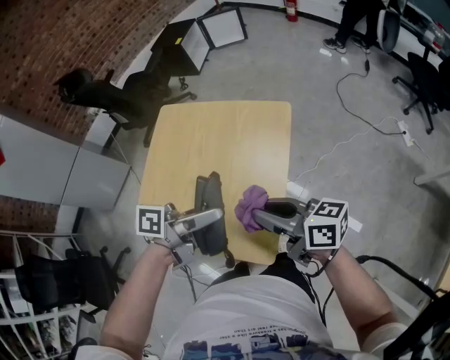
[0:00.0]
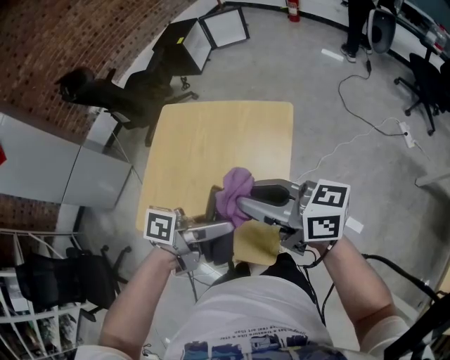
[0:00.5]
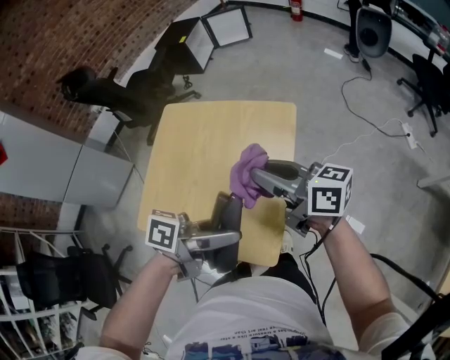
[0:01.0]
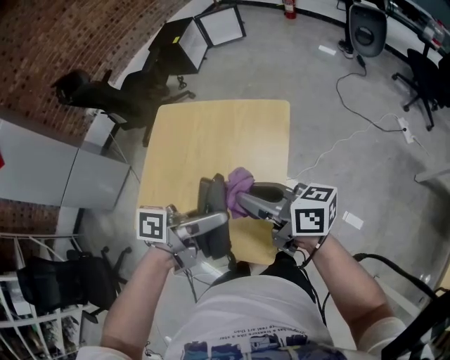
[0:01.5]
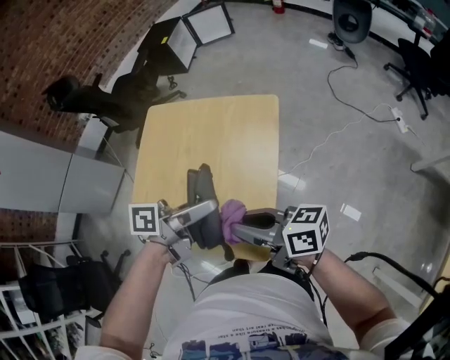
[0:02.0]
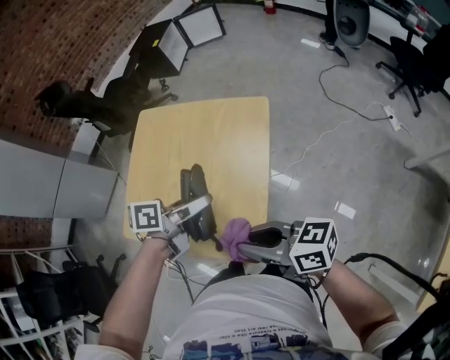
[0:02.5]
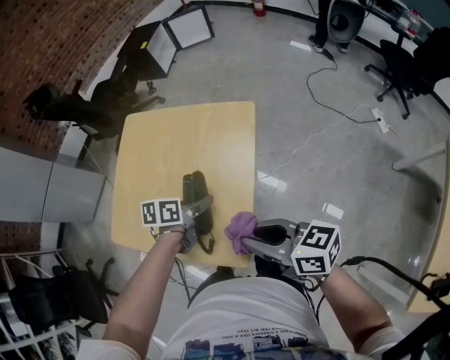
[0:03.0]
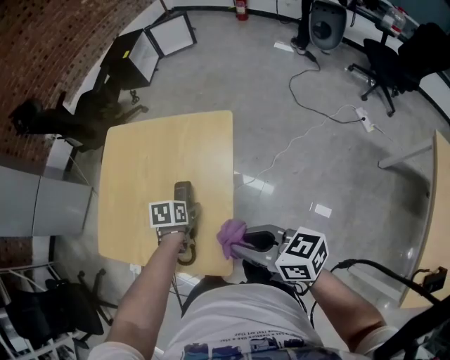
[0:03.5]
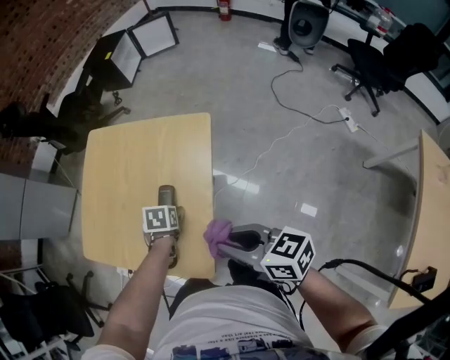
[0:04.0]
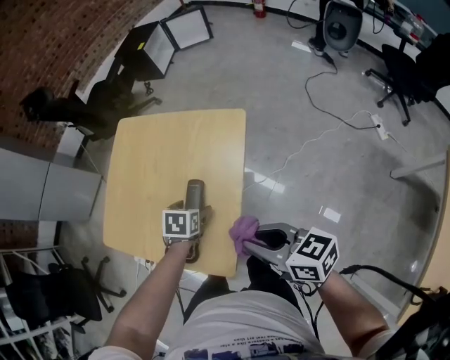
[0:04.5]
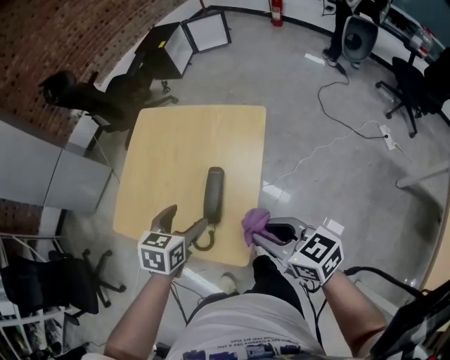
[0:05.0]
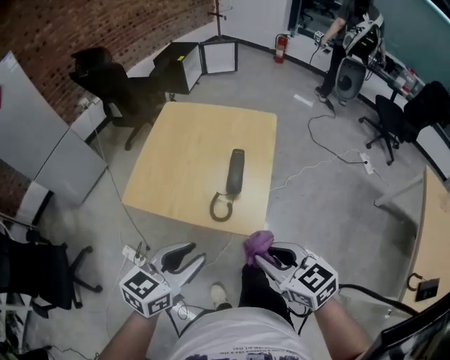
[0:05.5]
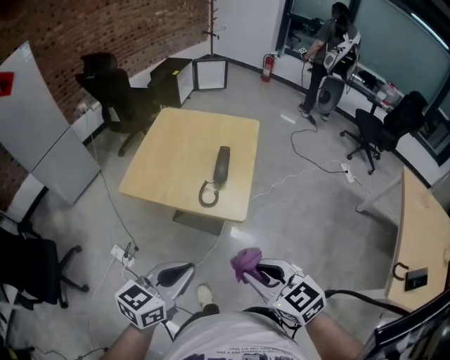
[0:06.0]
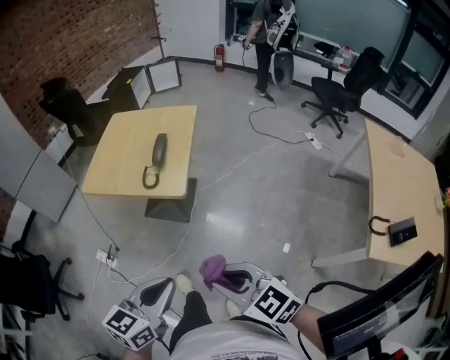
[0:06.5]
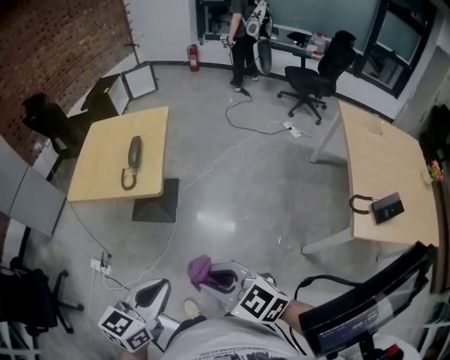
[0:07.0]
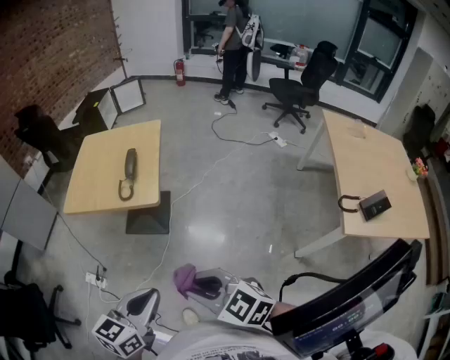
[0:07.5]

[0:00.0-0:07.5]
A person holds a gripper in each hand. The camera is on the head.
0:00.0 to 0:02.0: The right gripper travels upward and back again, about 10 cm each way.
0:02.0 to 0:04.0: The right gripper changes place by about 10 cm, and changes its angle by about 20 degrees. Meanwhile the left gripper heads downward, covering roughly 25 cm, and tips its fingers downward by approximately 60 degrees.
0:04.0 to 0:05.5: The left gripper is displaced backward, upward and to the left by some 35 cm, and points its fingers roughly 50 degrees further upward; the right gripper shifts approximately 20 cm backward and to the left, and swivels about 30 degrees.
0:05.5 to 0:07.5: Both grippers travel together backward, some 30 cm. The left gripper closes up.

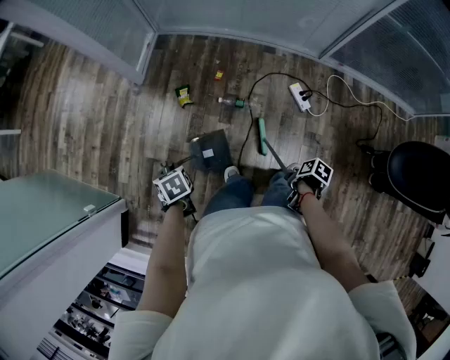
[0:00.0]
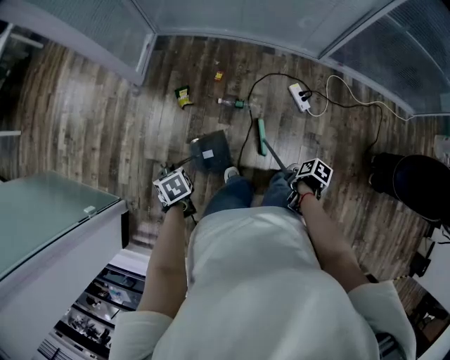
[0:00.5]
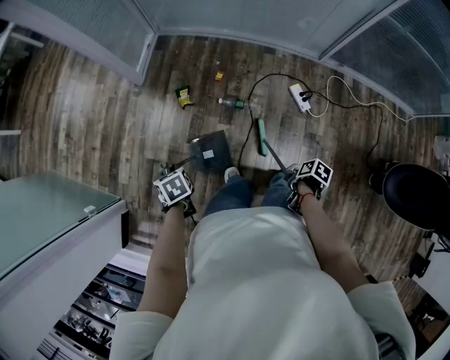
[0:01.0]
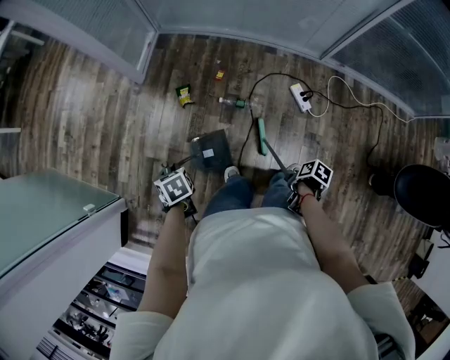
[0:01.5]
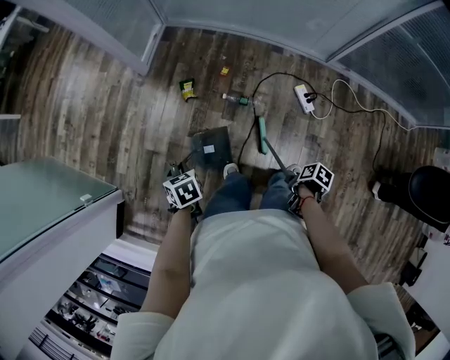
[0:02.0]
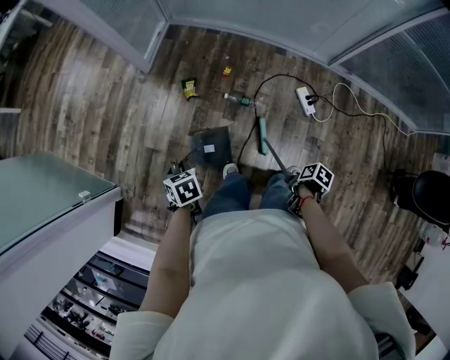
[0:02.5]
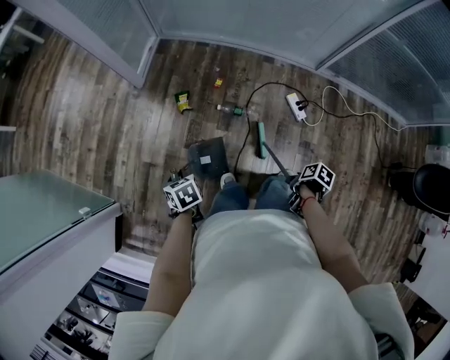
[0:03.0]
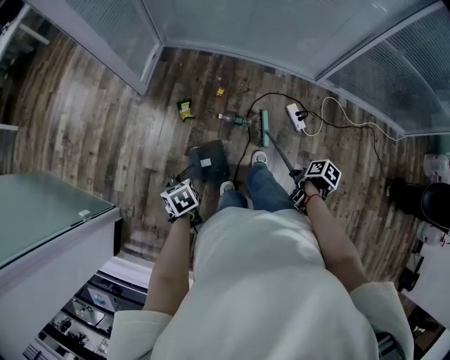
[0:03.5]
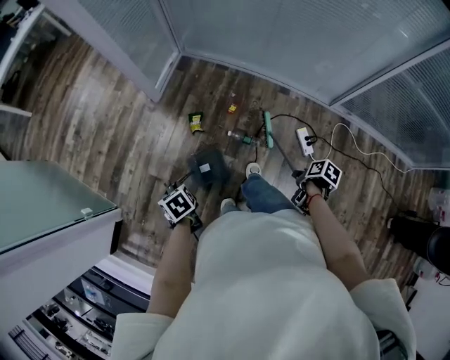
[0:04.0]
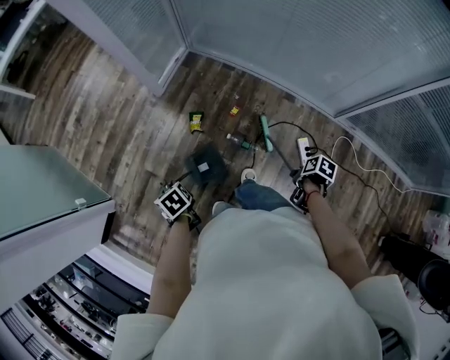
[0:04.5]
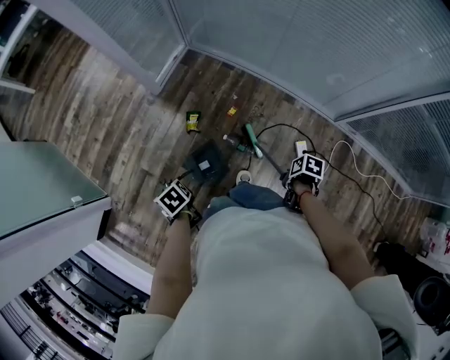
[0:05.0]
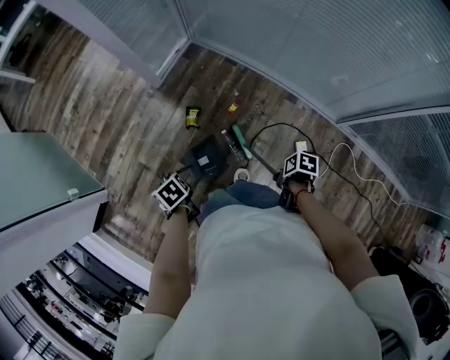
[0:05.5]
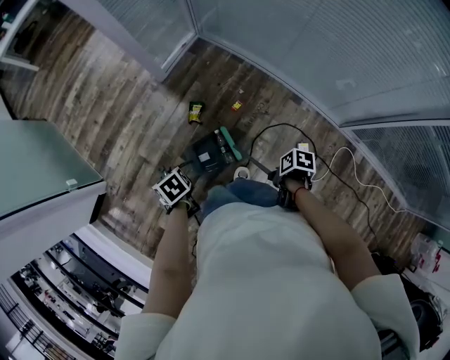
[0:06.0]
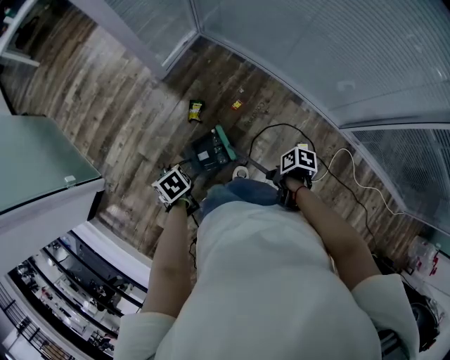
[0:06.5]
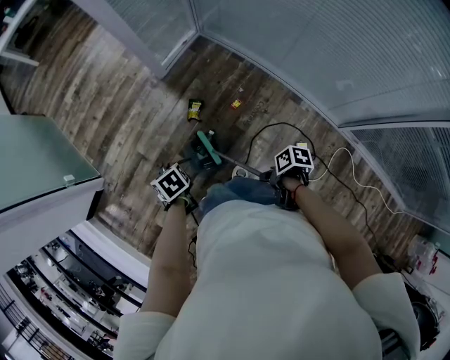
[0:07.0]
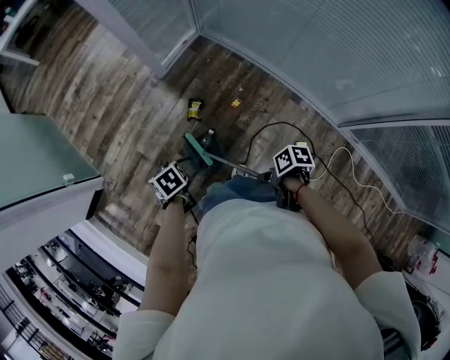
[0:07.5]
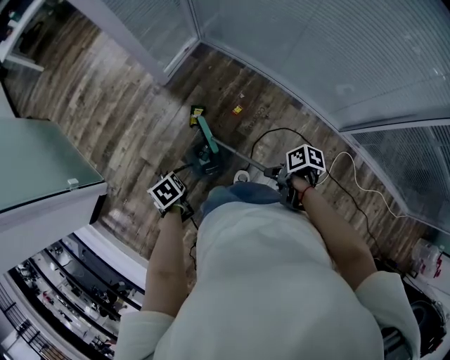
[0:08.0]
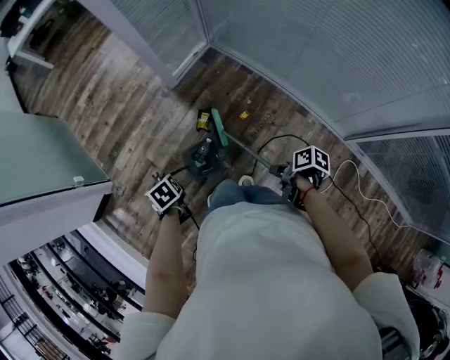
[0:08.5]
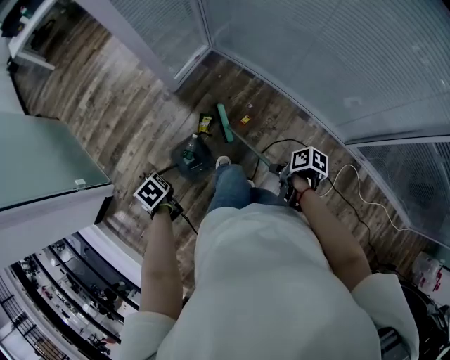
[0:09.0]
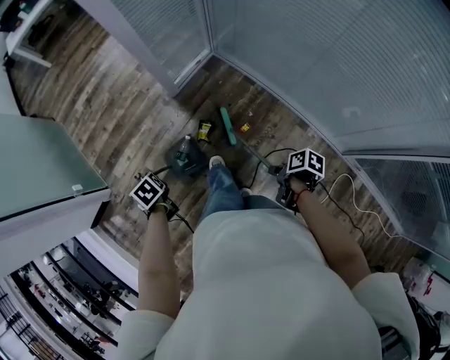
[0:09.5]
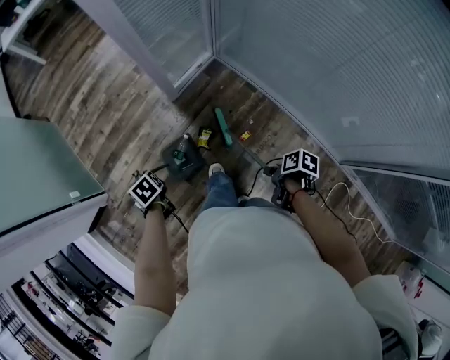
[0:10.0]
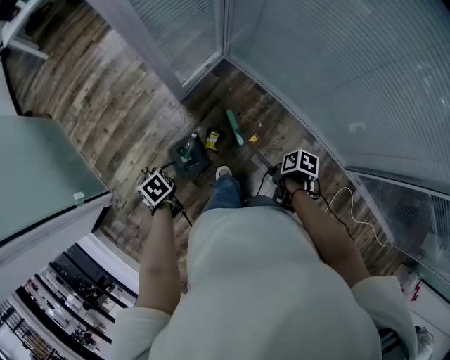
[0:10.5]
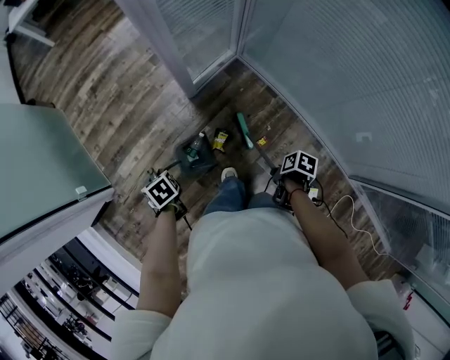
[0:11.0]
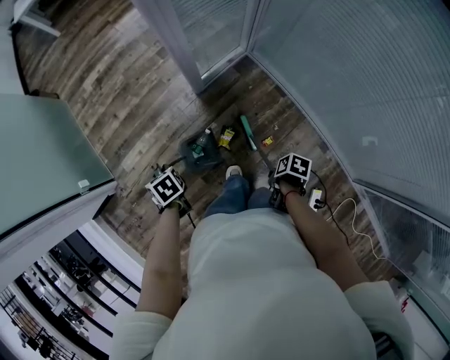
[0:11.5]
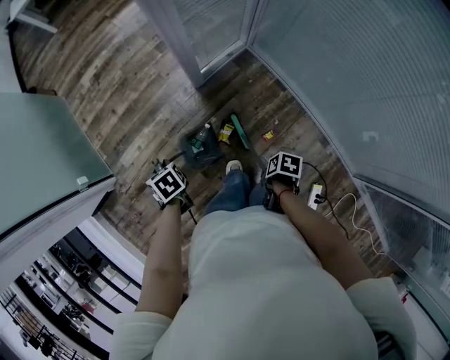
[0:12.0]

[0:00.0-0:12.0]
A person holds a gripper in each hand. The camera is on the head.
0:02.0 to 0:04.0: The left gripper ends up roughly 5 cm from where it was, and changes its angle by roughly 20 degrees.
0:04.0 to 0:06.0: The left gripper ends up about 10 cm from where it was.
0:08.0 to 0:10.0: The left gripper shifts by about 20 cm.
0:10.0 to 0:12.0: The left gripper ends up about 10 cm from where it was.

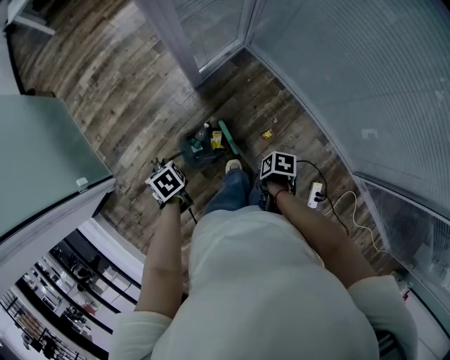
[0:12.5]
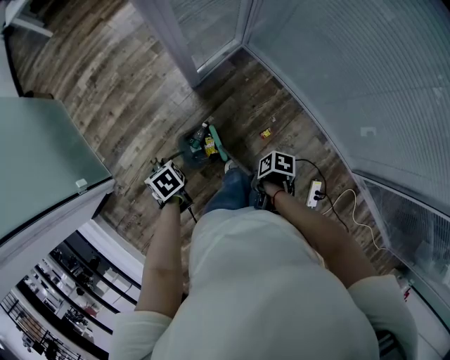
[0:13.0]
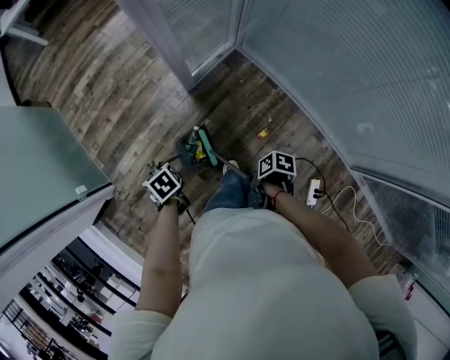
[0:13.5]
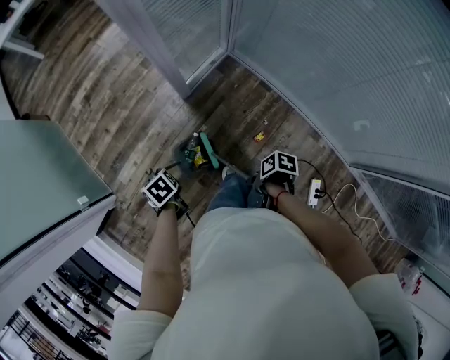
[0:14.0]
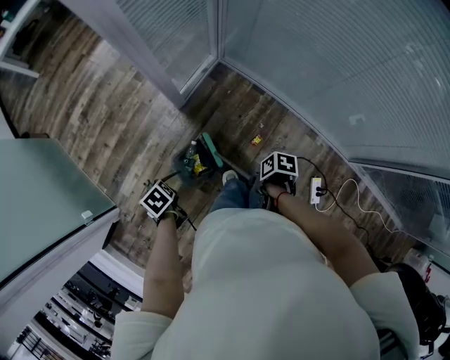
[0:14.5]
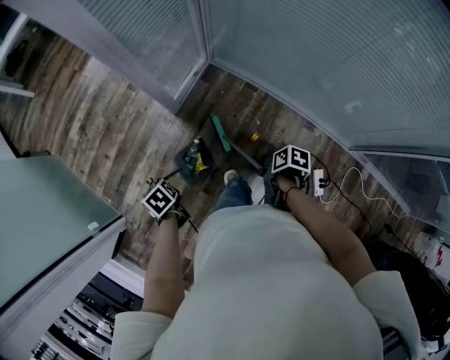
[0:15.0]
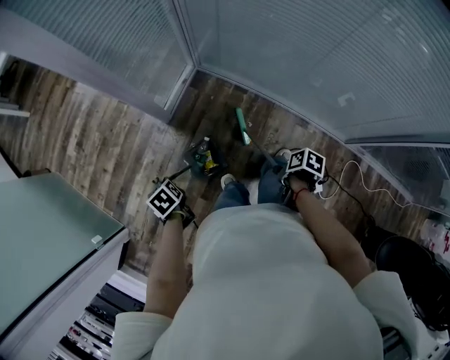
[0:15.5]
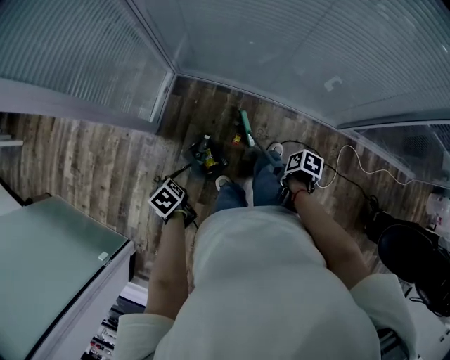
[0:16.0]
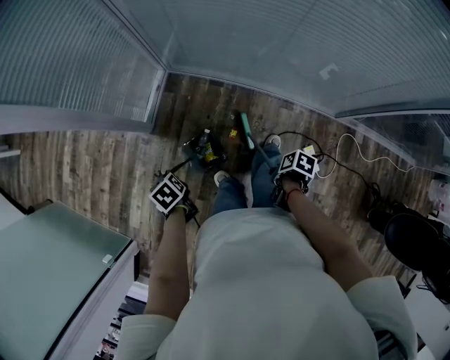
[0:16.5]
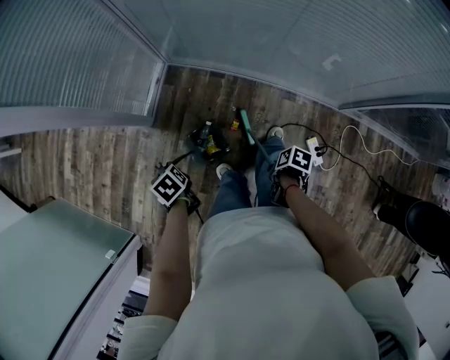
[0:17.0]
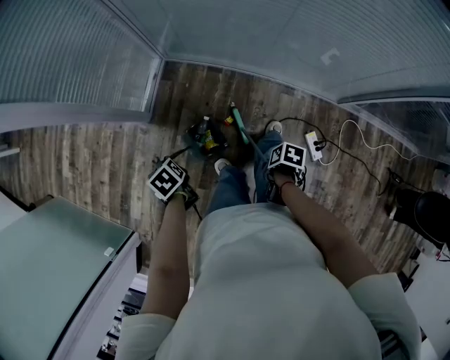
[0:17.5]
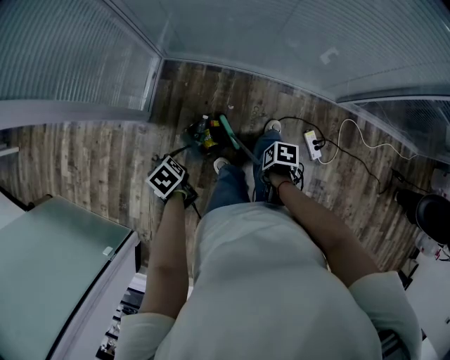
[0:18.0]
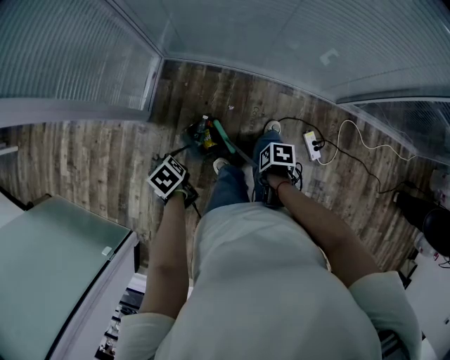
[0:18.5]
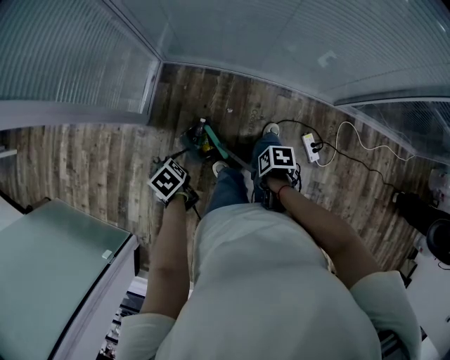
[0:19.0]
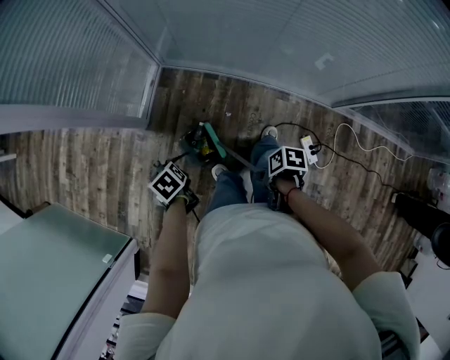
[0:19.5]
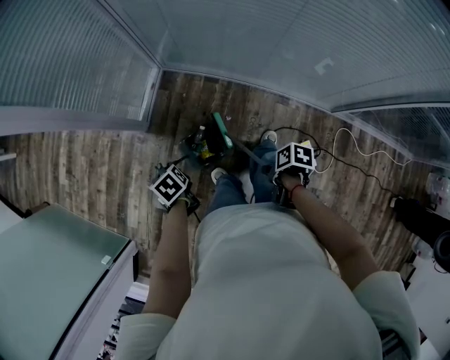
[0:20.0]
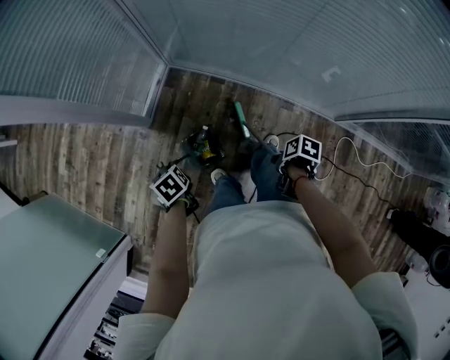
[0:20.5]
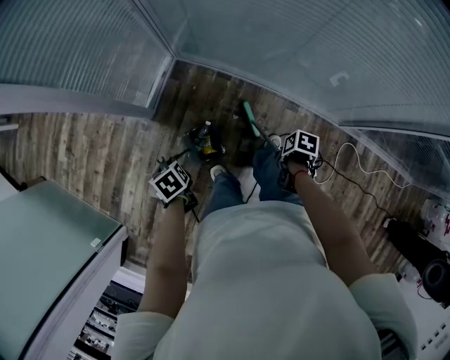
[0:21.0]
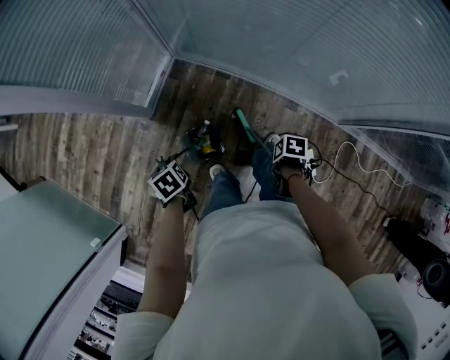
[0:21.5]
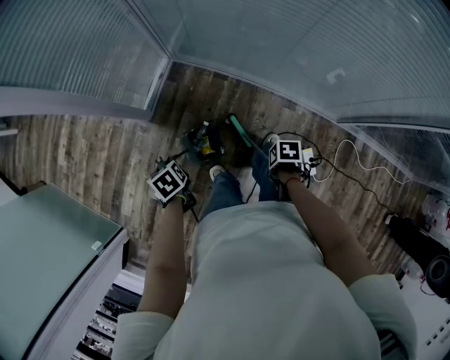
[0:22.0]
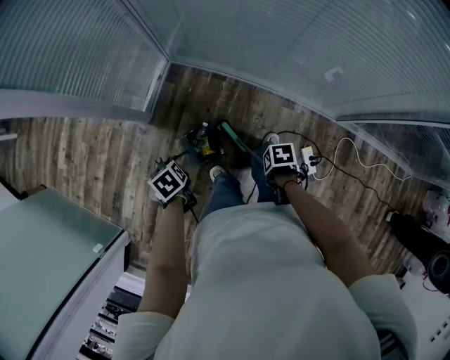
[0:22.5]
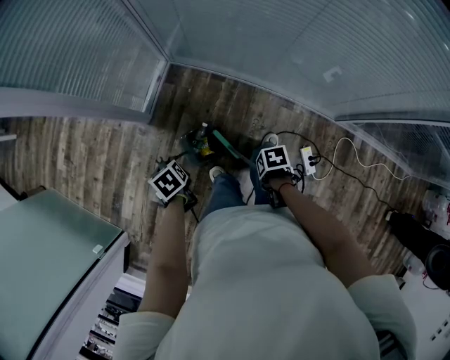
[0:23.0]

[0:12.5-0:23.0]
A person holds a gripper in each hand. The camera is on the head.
0:14.5 to 0:16.5: The left gripper changes place by approximately 25 cm, and changes its angle by roughly 20 degrees.
